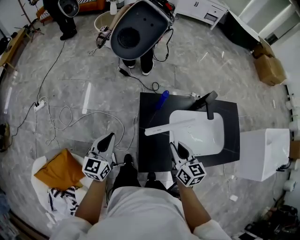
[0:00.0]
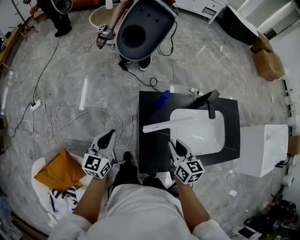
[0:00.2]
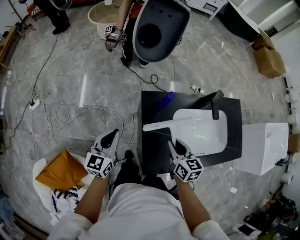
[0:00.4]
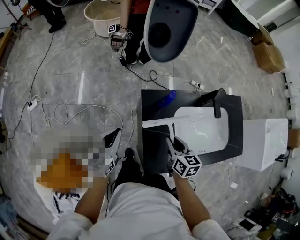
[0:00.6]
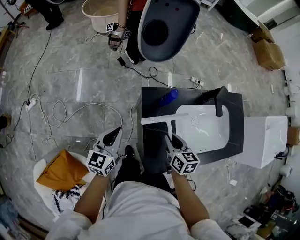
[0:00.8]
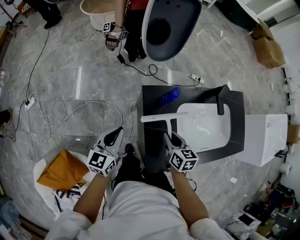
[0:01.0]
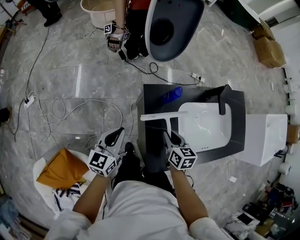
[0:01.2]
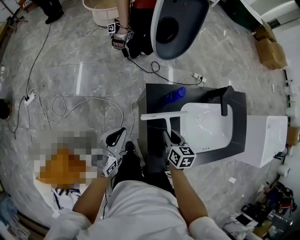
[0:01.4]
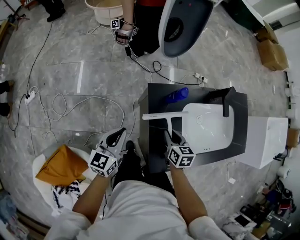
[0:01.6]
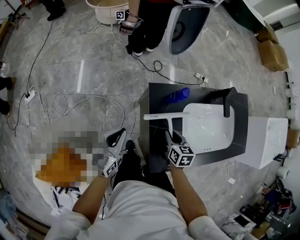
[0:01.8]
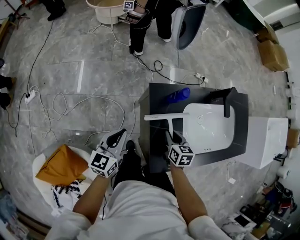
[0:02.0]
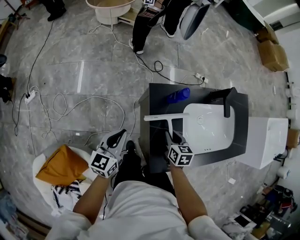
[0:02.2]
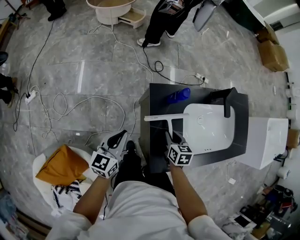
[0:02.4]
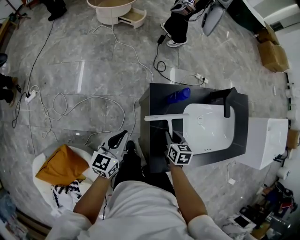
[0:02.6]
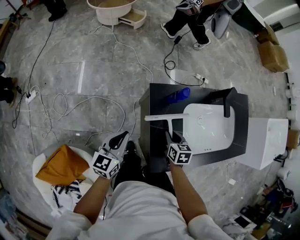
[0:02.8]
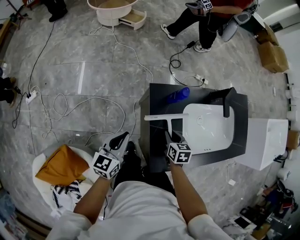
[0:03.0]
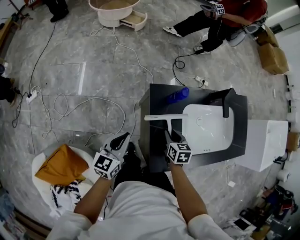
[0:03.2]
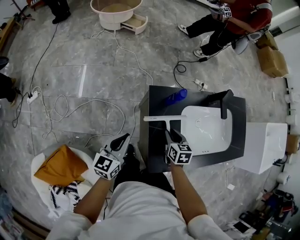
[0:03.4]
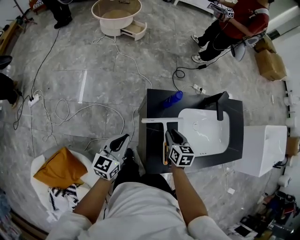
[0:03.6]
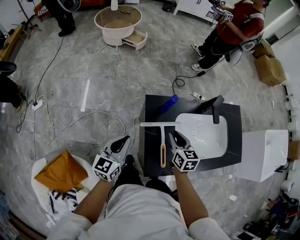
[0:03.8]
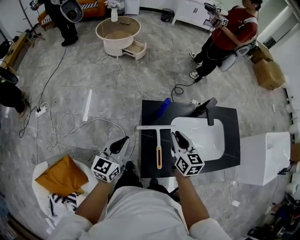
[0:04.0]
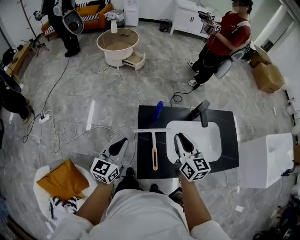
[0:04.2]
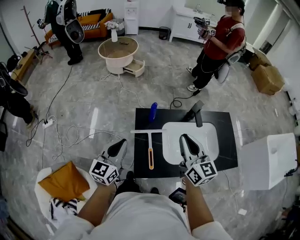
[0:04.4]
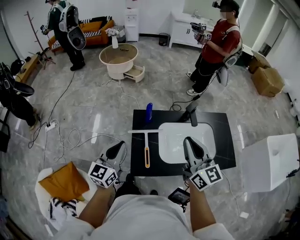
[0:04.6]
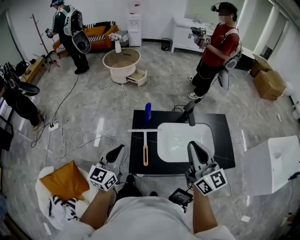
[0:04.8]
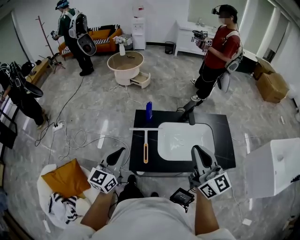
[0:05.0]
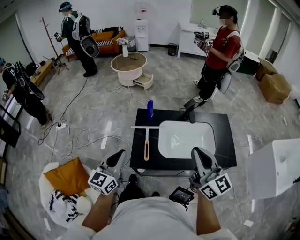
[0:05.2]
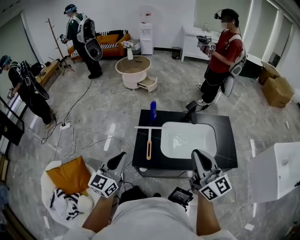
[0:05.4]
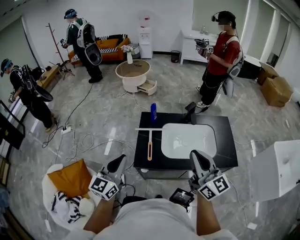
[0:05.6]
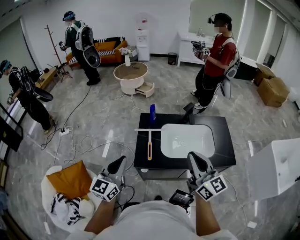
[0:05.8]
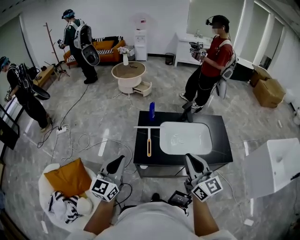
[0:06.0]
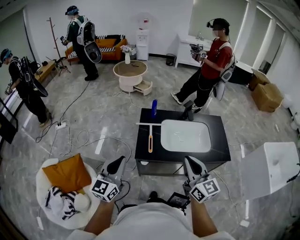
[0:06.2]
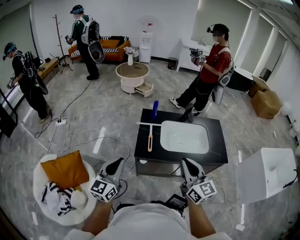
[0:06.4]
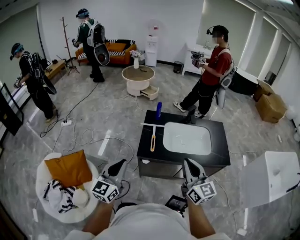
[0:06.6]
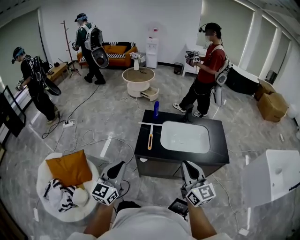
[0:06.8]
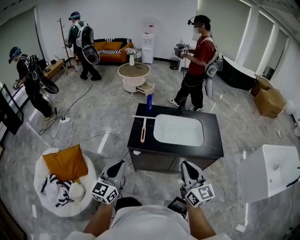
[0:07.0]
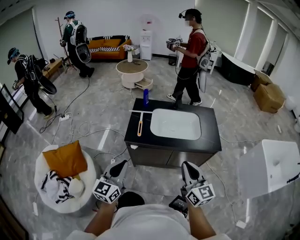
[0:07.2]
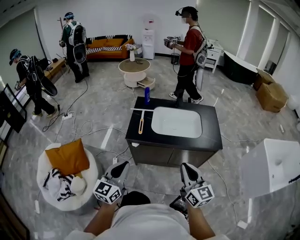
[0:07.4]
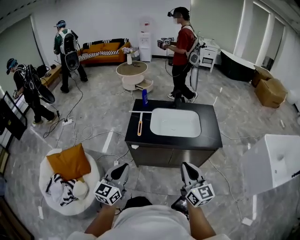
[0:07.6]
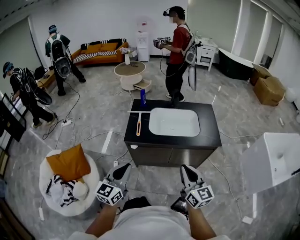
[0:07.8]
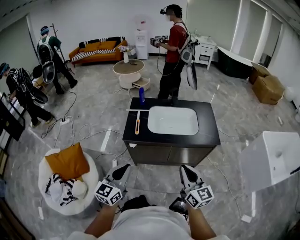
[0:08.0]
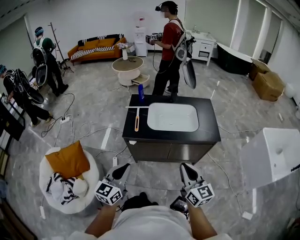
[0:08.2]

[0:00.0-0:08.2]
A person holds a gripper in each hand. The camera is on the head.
0:00.0 to 0:01.6: The right gripper travels downward by about 15 cm, and turns by roughly 20 degrees. The left gripper goes approximately 10 cm downward and forward.
0:01.6 to 0:03.2: The grippers make only small movements.
0:03.2 to 0:05.0: The right gripper moves upward, to the right and backward, approximately 50 cm, and points its fingers approximately 60 degrees further upward. Meanwhile the left gripper heads upward, backward and to the right, covering approximately 30 cm, and swivels approximately 30 degrees.
0:05.0 to 0:06.6: Both grippers travel together backward, about 20 cm.
0:06.6 to 0:08.2: The left gripper is displaced to the right and backward by some 20 cm. The right gripper moves to the right, backward and downward, some 20 cm.

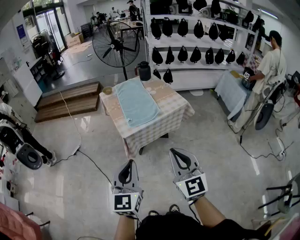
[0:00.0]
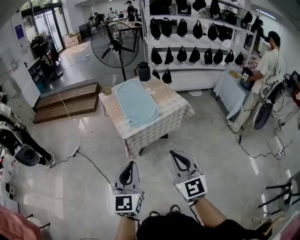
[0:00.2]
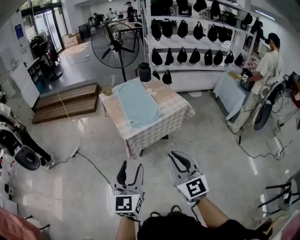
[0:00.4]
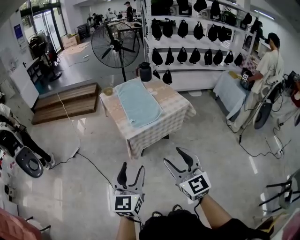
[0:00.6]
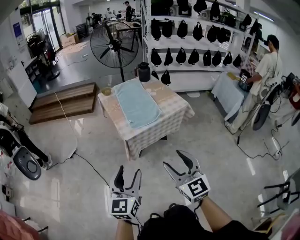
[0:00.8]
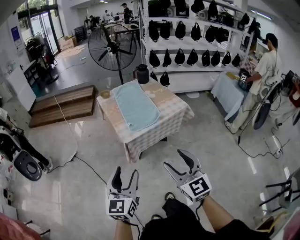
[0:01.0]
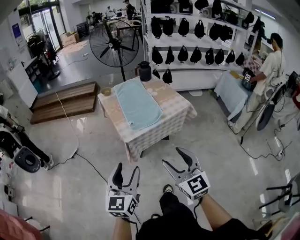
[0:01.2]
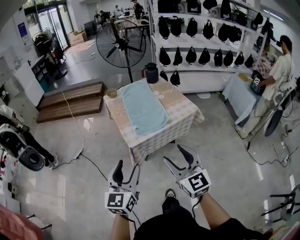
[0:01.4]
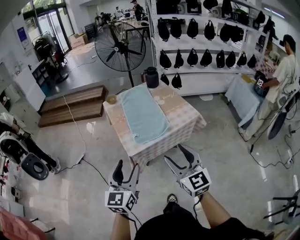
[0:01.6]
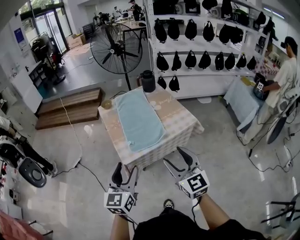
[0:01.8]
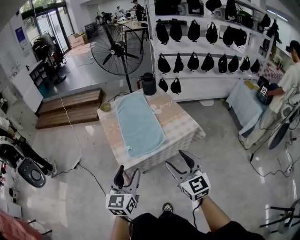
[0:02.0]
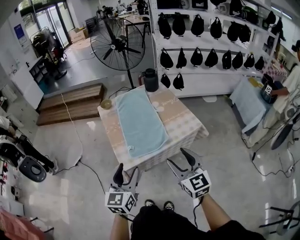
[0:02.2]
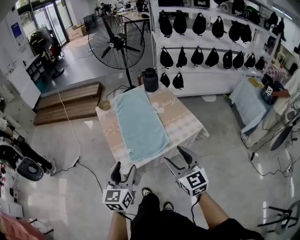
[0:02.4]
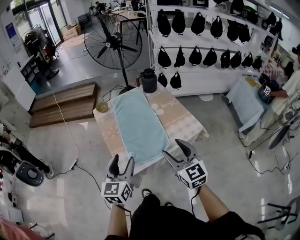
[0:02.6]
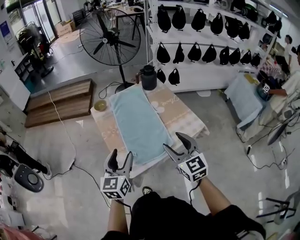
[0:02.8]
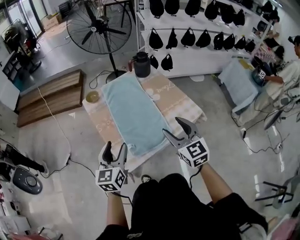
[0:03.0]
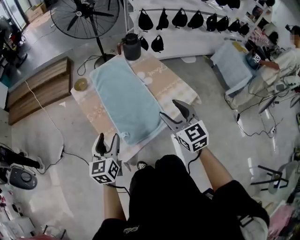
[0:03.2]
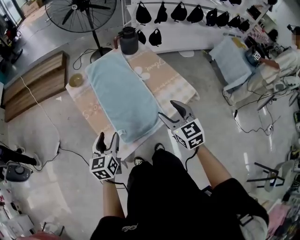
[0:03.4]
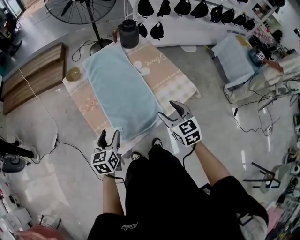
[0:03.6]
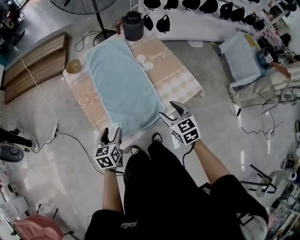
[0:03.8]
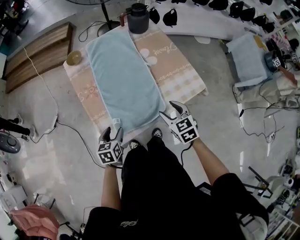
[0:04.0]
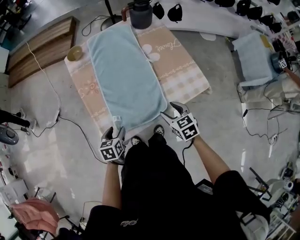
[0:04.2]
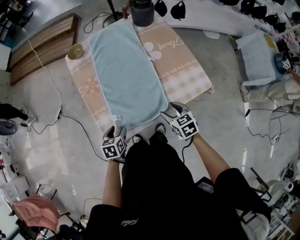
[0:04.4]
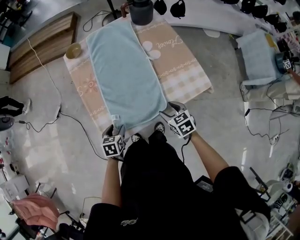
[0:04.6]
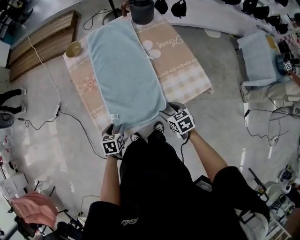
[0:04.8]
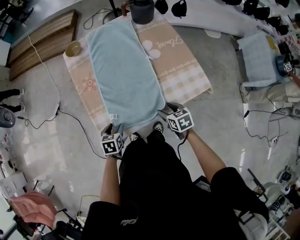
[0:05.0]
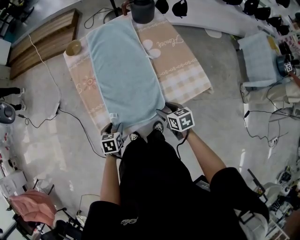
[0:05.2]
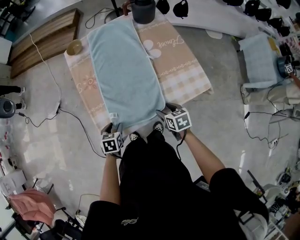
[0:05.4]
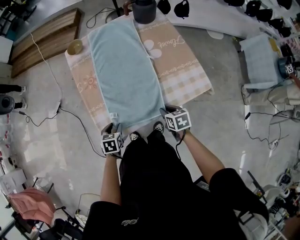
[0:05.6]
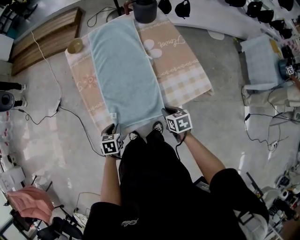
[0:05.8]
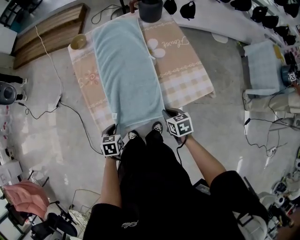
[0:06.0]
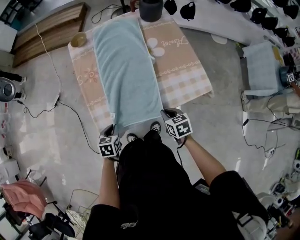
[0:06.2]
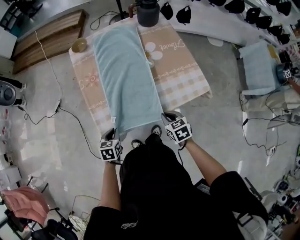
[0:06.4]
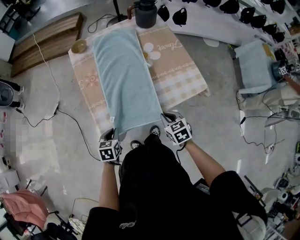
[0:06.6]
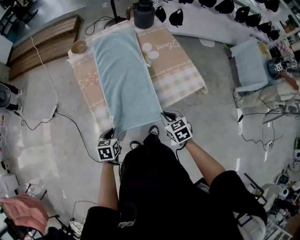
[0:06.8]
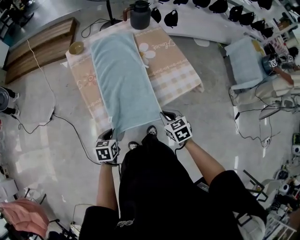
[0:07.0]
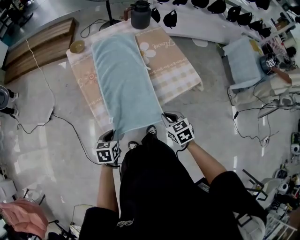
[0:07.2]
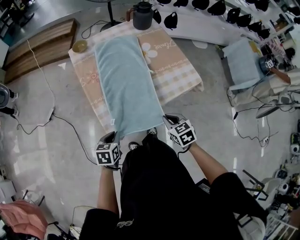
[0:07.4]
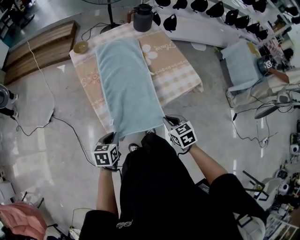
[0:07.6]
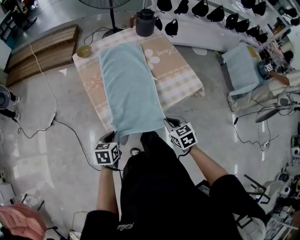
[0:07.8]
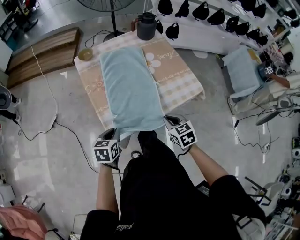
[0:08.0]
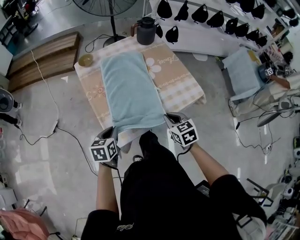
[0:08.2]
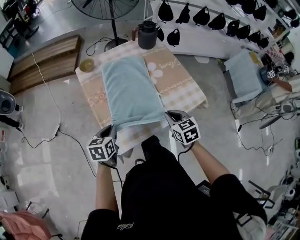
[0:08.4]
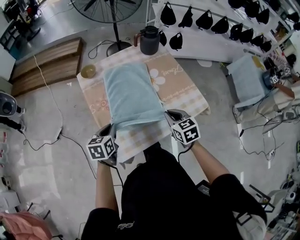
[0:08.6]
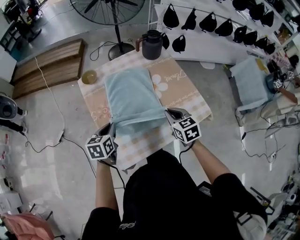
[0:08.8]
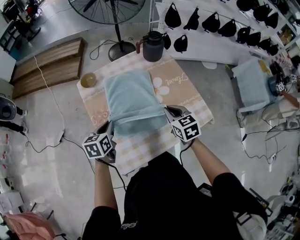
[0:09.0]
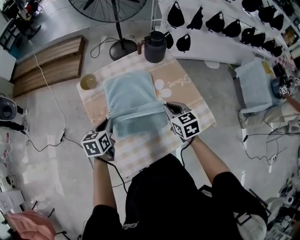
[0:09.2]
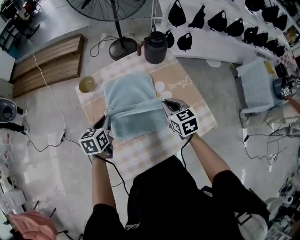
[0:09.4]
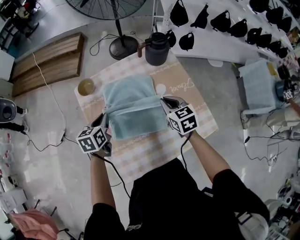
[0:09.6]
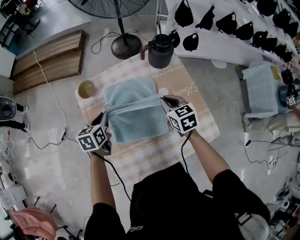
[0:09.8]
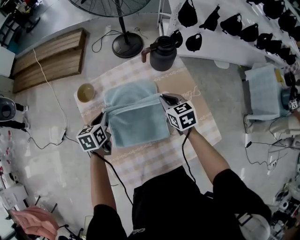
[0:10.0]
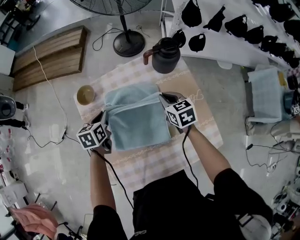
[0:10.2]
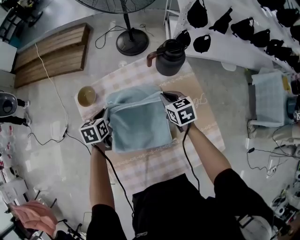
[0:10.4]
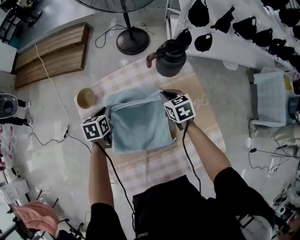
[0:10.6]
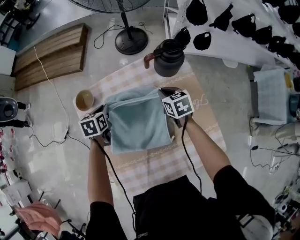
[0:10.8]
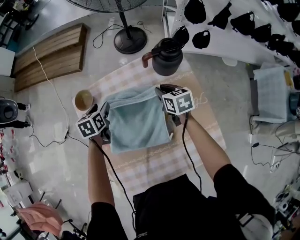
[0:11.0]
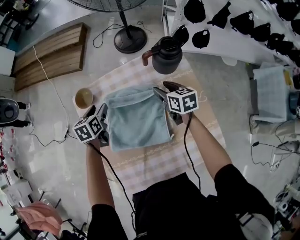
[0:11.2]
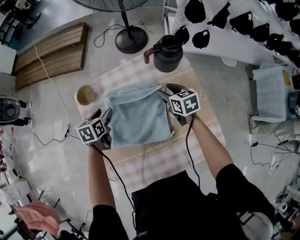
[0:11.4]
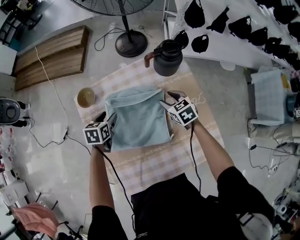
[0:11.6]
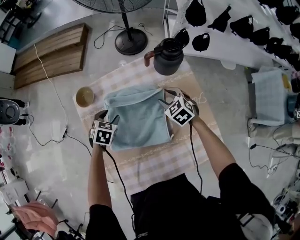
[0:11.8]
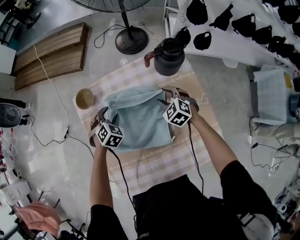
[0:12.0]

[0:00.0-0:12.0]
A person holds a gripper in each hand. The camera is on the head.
0:00.0 to 0:01.6: The two grippers go some 20 cm forward. The right gripper opens up. Meanwhile the left gripper opens.
0:01.6 to 0:03.0: Both grippers move forward, roughly 35 cm.
0:03.0 to 0:04.4: Both grippers travel together downward, roughly 30 cm. The right gripper tips its fingers downward by some 30 degrees. Meanwhile the left gripper tips its fingers downward by roughly 40 degrees.
0:04.4 to 0:06.0: The left gripper closes. The right gripper moves roughly 5 cm, and closes.
0:06.0 to 0:07.6: The right gripper heads backward, upward and to the left, covering about 15 cm. The left gripper goes approximately 15 cm upward, backward and to the left.
0:07.6 to 0:09.0: The grippers both shift forward by roughly 30 cm.
0:09.0 to 0:10.4: Both grippers travel together forward, approximately 25 cm.
0:10.4 to 0:12.0: Both grippers move downward, roughly 5 cm. The right gripper changes its angle by approximately 40 degrees, and opens. Meanwhile the left gripper goes forward and returns, some 5 cm each way, rotates around the line of its fingers by approximately 50 degrees, clockwise from behind, and opens its fingers.

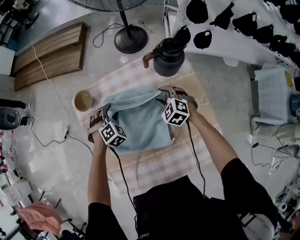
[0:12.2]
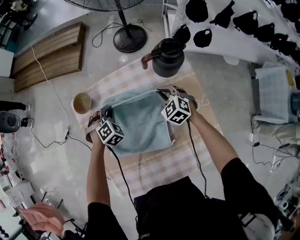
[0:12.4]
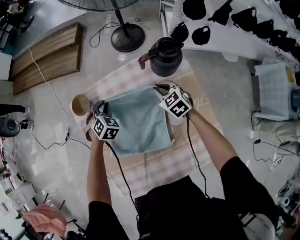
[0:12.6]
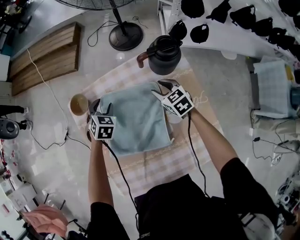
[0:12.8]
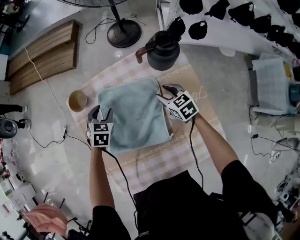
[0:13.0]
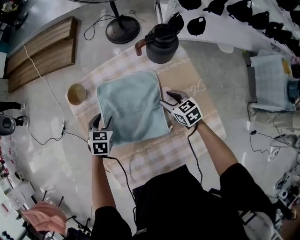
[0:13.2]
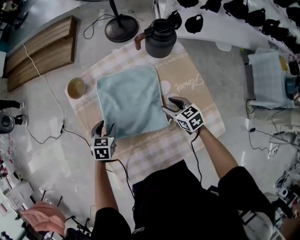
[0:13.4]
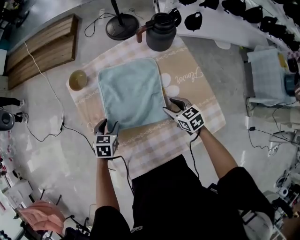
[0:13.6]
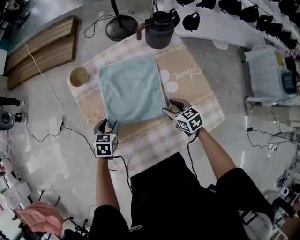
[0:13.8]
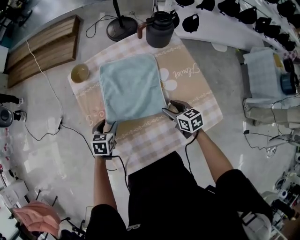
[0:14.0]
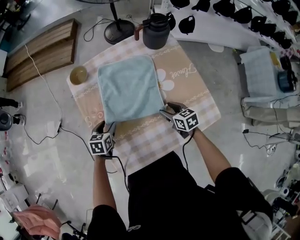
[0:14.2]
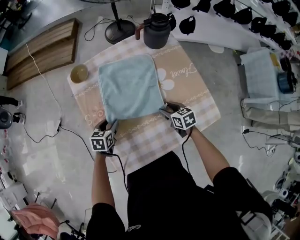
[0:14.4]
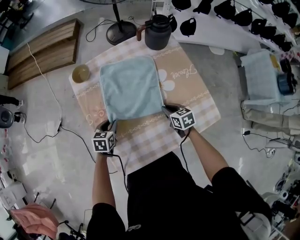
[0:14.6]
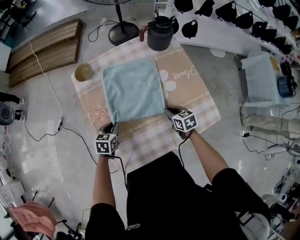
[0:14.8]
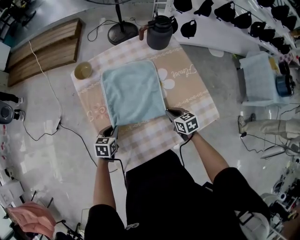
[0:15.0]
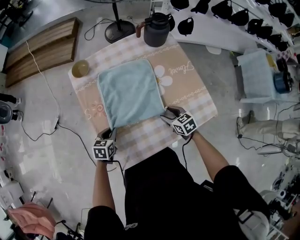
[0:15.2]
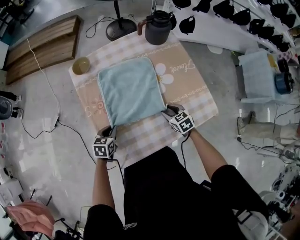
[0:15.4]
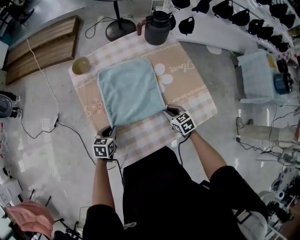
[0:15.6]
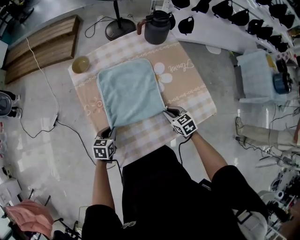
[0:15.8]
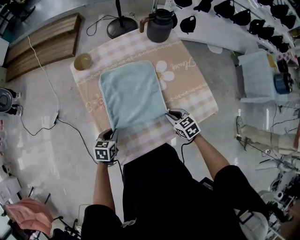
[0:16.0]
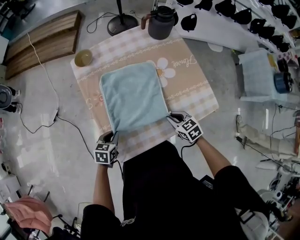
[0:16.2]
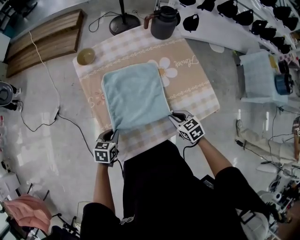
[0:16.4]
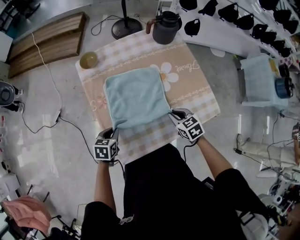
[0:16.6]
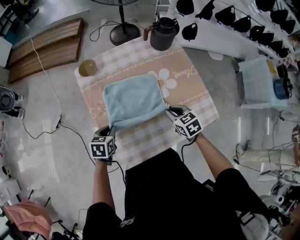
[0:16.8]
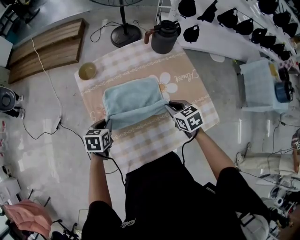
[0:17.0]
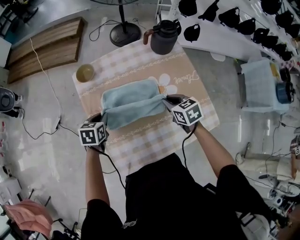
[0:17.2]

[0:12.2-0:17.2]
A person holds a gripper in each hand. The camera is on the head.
0:12.2 to 0:13.8: The right gripper shifts approximately 20 cm backward, twists some 50 degrees clockwise, seen from behind, and closes, then opens again. The left gripper is displaced backward and to the left by approximately 20 cm, rotates around the line of its fingers by approximately 50 degrees, counterclockwise from behind, and closes, then reopens.
0:13.8 to 0:15.6: Both grippers travel together backward, about 10 cm. The right gripper closes its fingers, while the left gripper closes up.
0:15.6 to 0:17.2: The two grippers go approximately 15 cm forward and upward.
